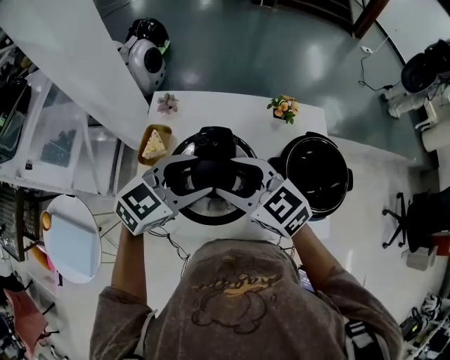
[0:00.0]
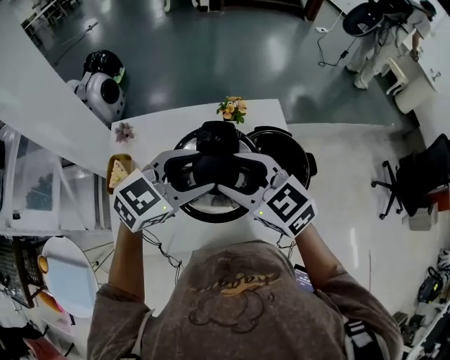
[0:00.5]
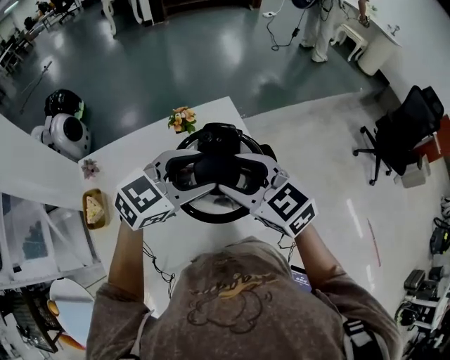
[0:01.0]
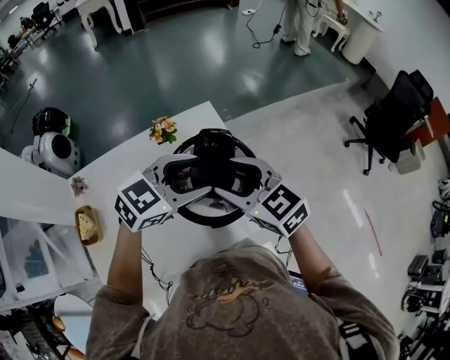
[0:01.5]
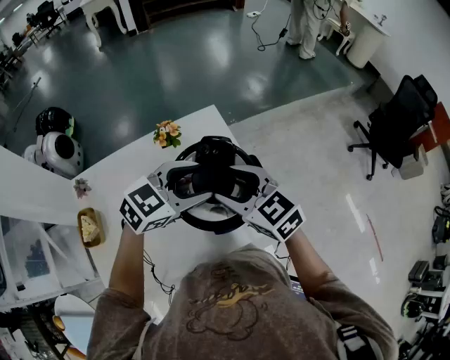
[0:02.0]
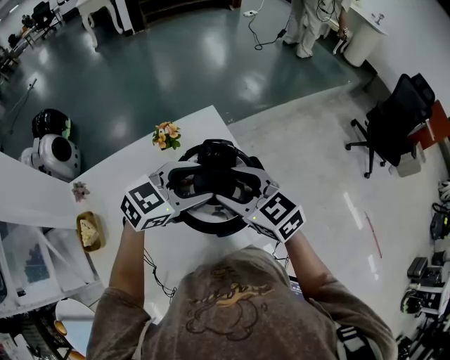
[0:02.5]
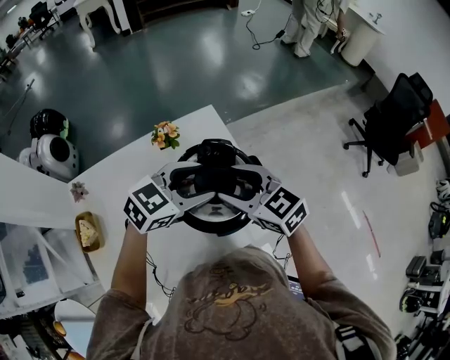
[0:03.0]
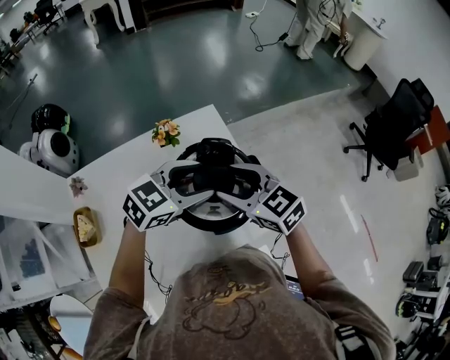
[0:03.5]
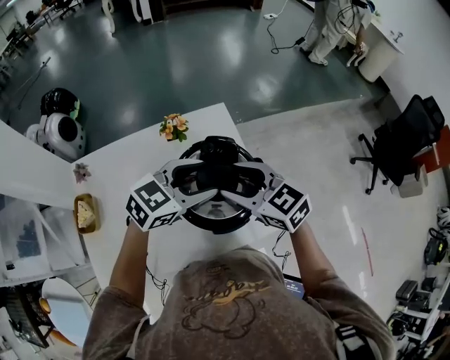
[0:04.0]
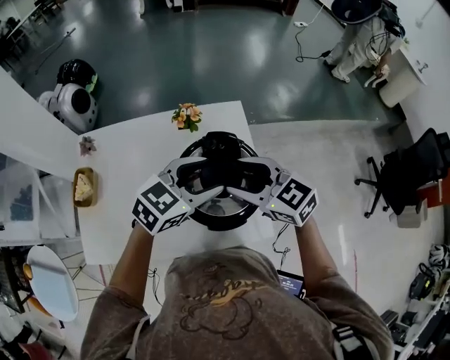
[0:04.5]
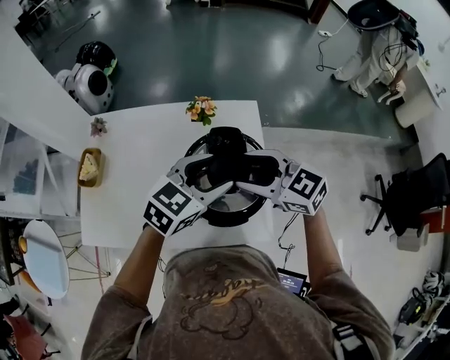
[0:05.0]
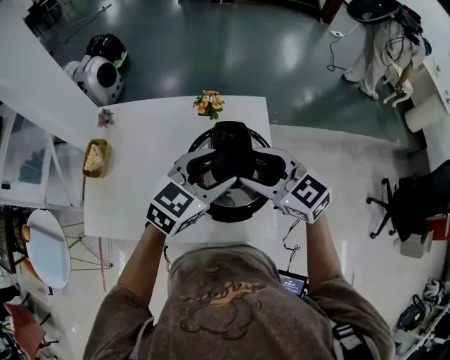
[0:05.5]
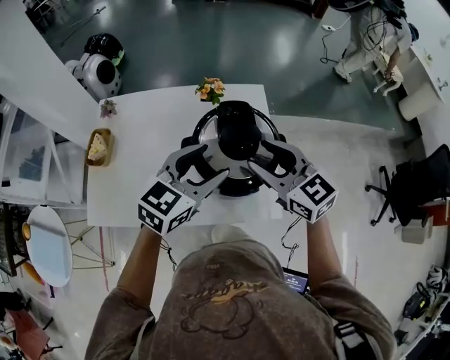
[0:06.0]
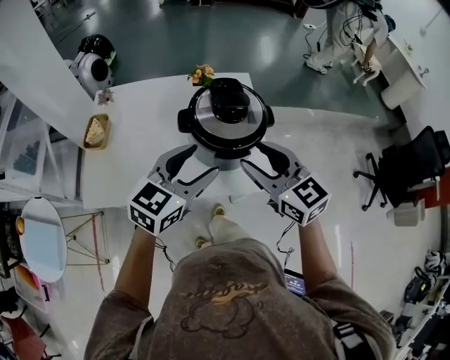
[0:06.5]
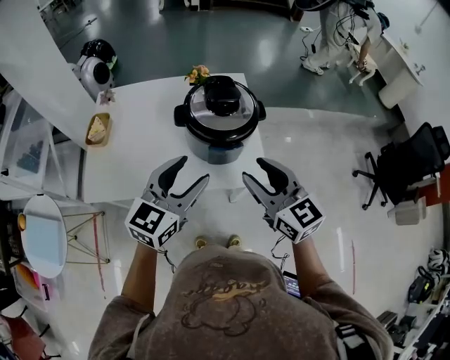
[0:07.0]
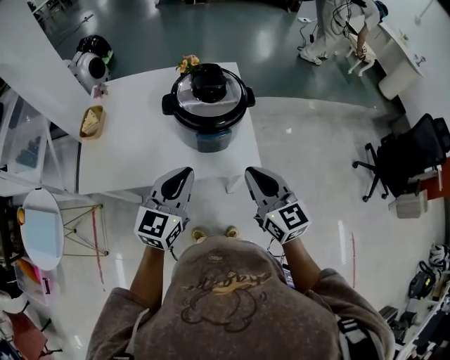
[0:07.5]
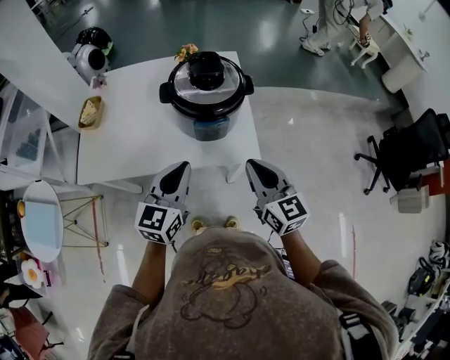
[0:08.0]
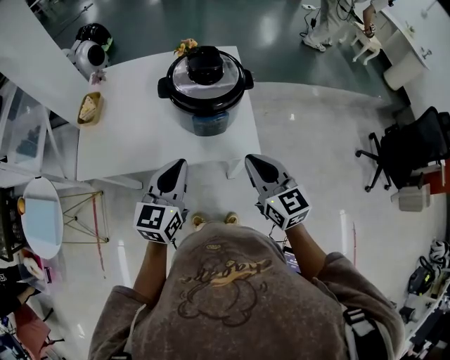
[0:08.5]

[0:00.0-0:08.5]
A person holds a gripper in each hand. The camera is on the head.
0:00.0 to 0:02.0: The right gripper changes place by about 30 cm, and swivels some 30 degrees. Meanwhile the left gripper ends up approximately 30 cm from where it was, and rotates about 30 degrees.
0:02.0 to 0:04.0: The grippers stay close to where they were, moving slightly.
0:04.0 to 0:06.5: The right gripper ends up roughly 15 cm from where it was, while the left gripper ends up some 20 cm from where it was, and turns by about 30 degrees.
0:06.5 to 0:08.5: The right gripper goes approximately 15 cm backward, downward and to the right, and closes up, while the left gripper goes roughly 10 cm backward and downward, changes its angle by roughly 20 degrees, and closes.

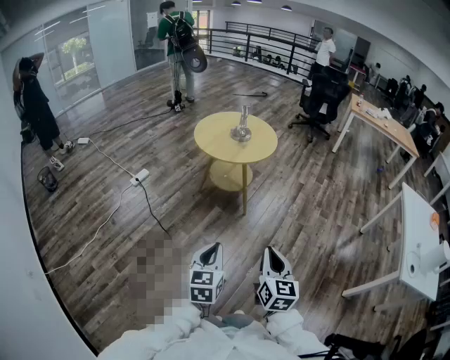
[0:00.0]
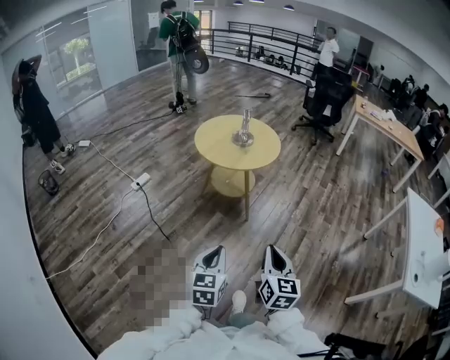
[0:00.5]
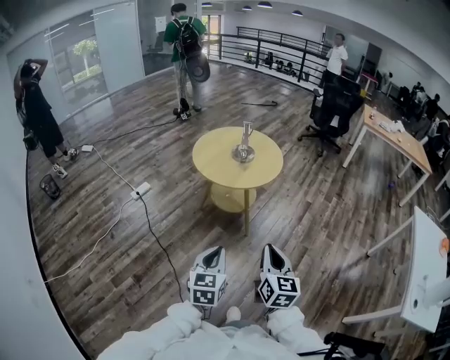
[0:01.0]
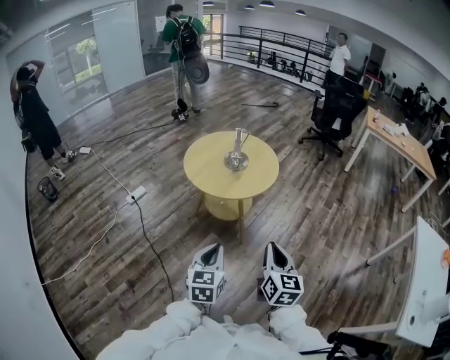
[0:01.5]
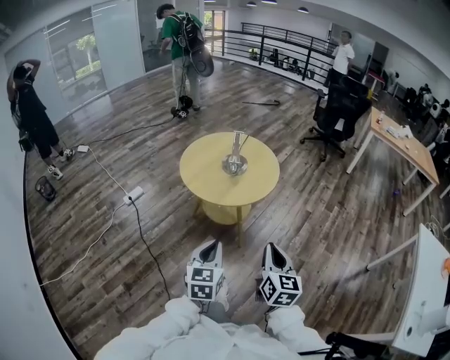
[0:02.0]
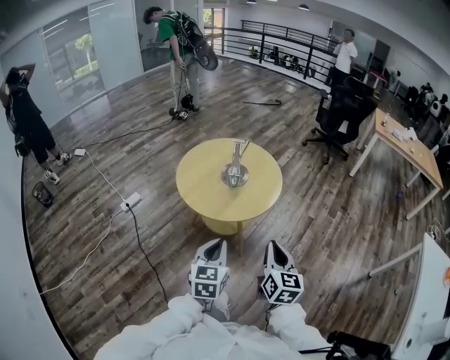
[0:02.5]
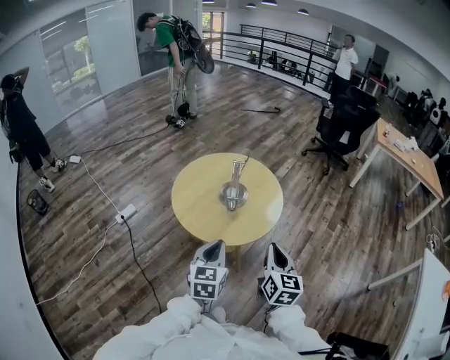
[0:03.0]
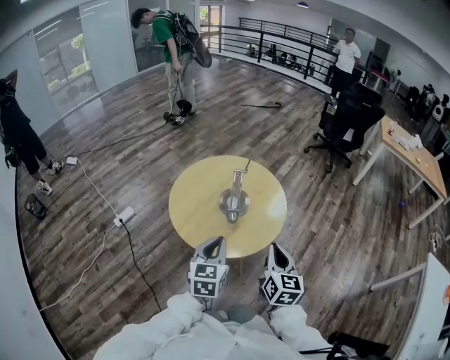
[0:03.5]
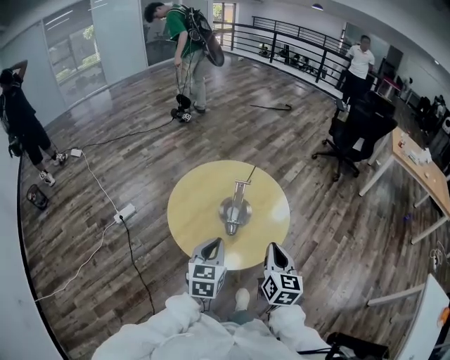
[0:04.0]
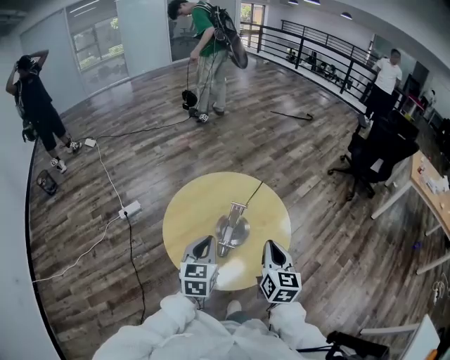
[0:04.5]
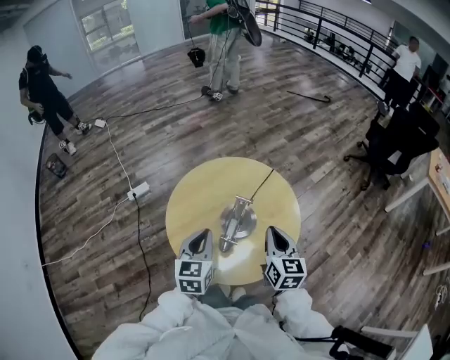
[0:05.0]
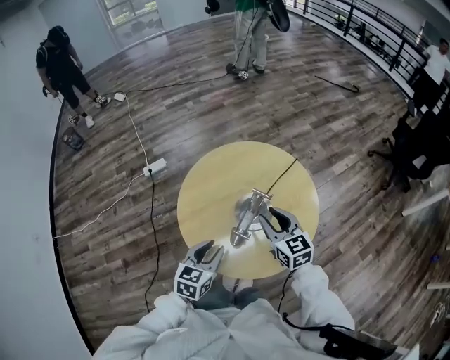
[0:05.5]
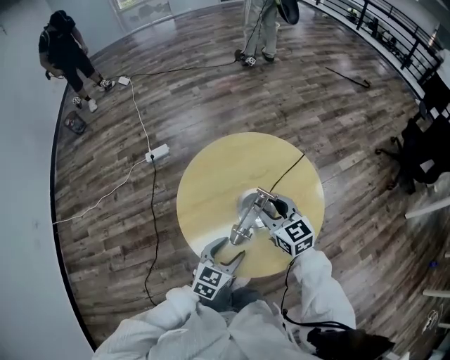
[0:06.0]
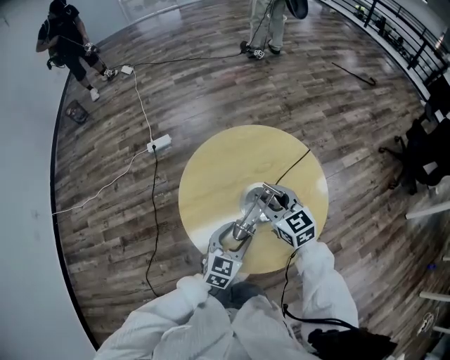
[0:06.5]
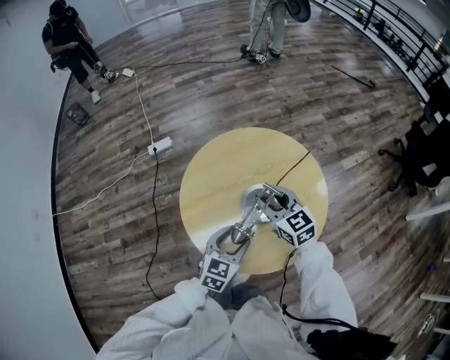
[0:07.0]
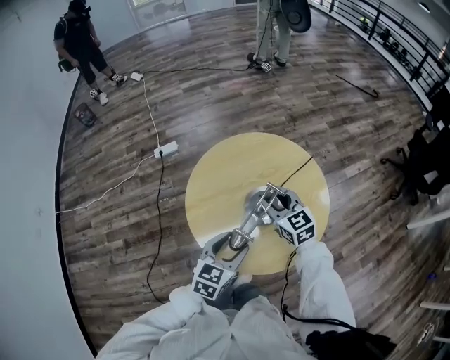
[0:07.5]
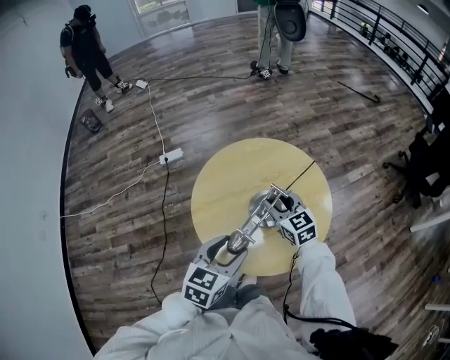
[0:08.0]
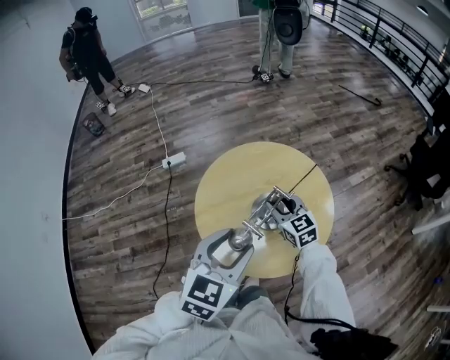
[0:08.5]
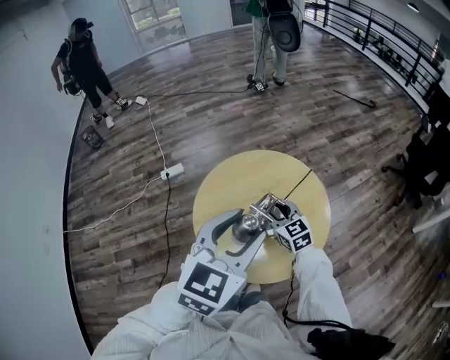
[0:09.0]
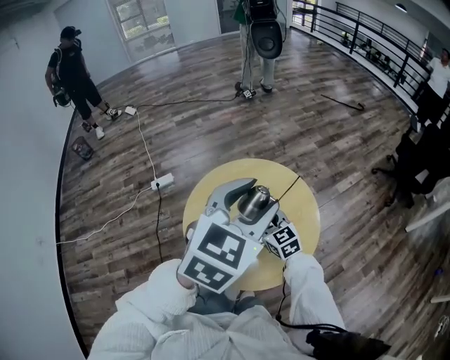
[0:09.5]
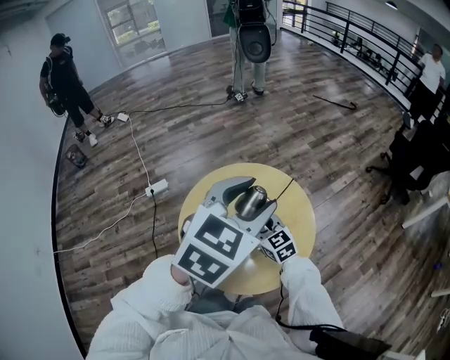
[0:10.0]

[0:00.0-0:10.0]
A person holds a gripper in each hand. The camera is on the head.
0:00.0 to 0:02.0: Both grippers travel together forward, about 35 cm.
0:02.0 to 0:04.0: The two grippers go about 40 cm forward.
0:04.0 to 0:06.0: The left gripper moves downward, roughly 15 cm, and opens; the right gripper moves about 30 cm, changes its angle by roughly 60 degrees, and opens up.
0:06.0 to 0:08.0: The left gripper is displaced upward by approximately 15 cm.
0:08.0 to 0:10.0: The left gripper goes roughly 30 cm upward, forward and to the right, and rotates about 30 degrees.

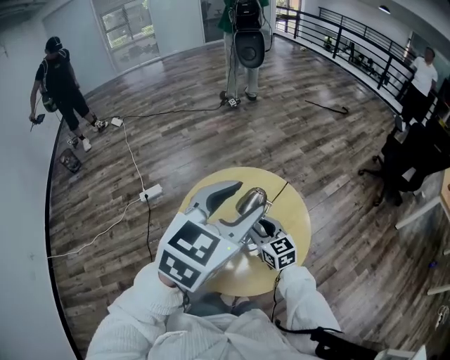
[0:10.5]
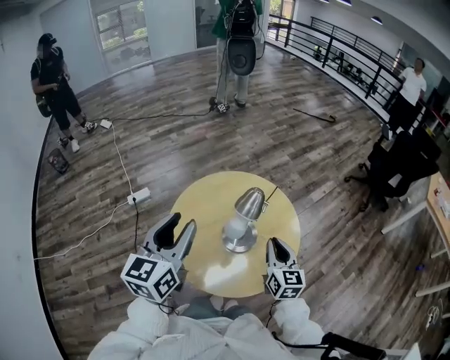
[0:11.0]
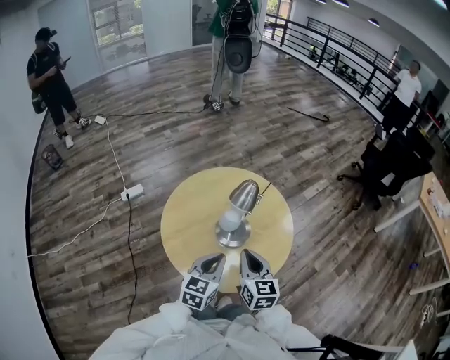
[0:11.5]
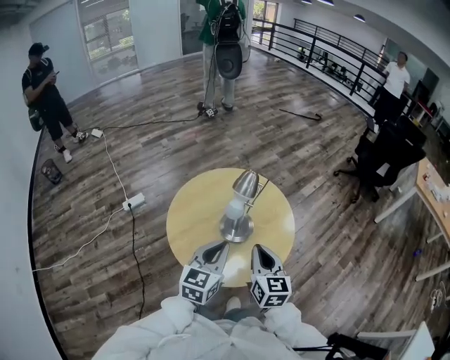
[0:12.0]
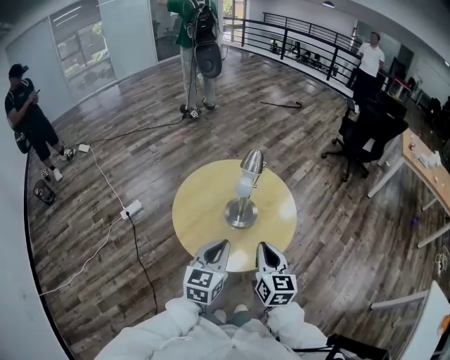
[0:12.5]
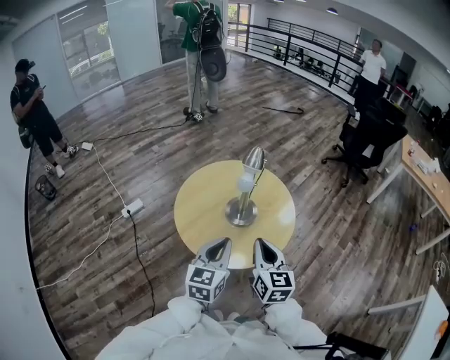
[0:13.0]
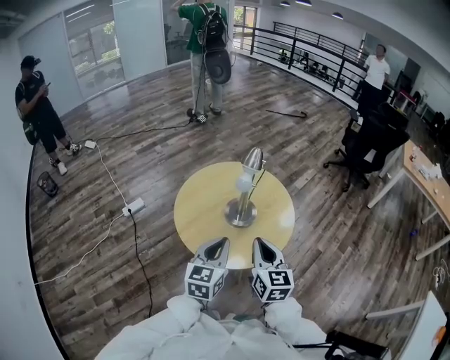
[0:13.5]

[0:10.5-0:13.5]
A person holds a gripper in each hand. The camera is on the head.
0:10.5 to 0:12.0: The right gripper shifts roughly 15 cm backward, swivels some 30 degrees, and closes its fingers, while the left gripper travels downward and backward by roughly 25 cm, and closes its fingers.
0:12.0 to 0:13.5: Both grippers travel together backward, about 10 cm.

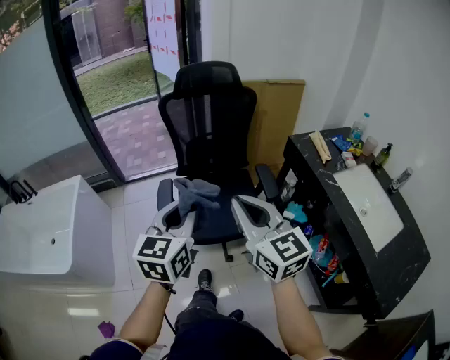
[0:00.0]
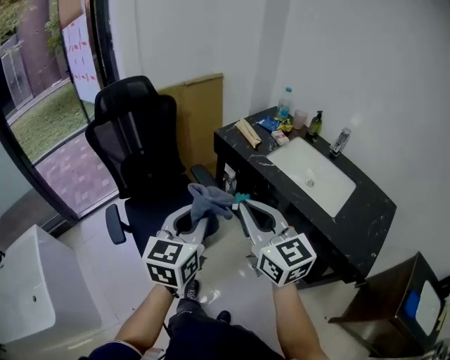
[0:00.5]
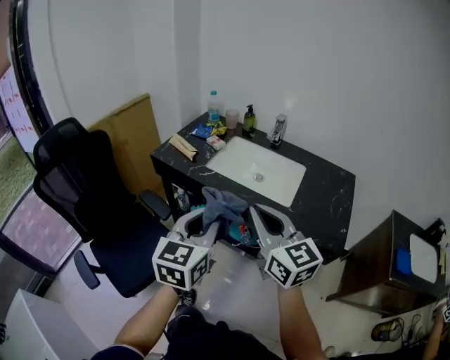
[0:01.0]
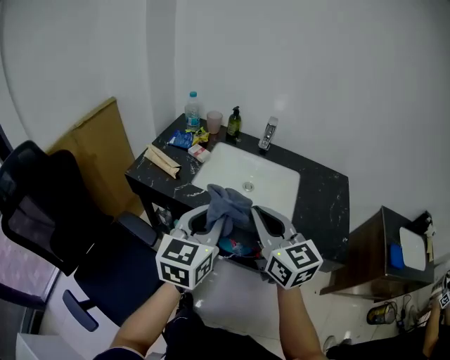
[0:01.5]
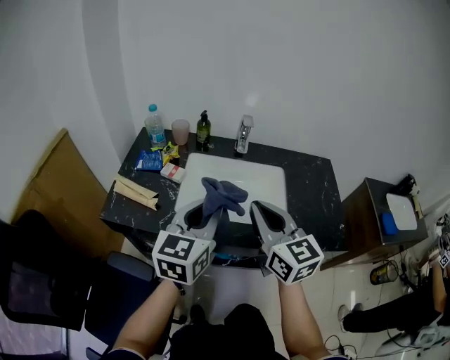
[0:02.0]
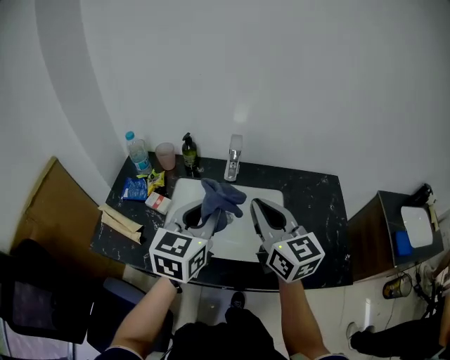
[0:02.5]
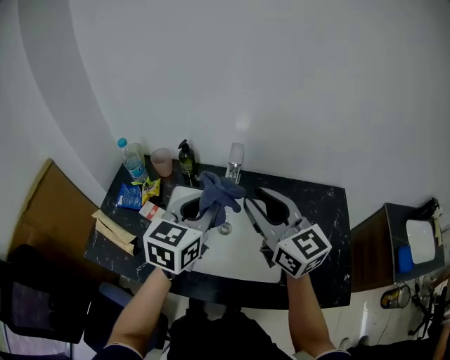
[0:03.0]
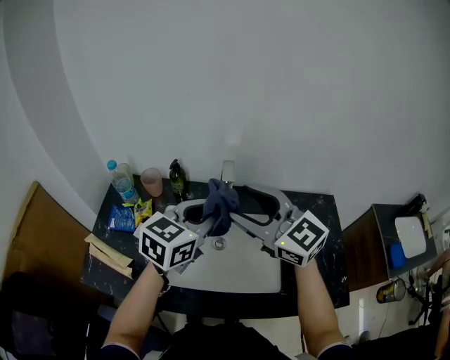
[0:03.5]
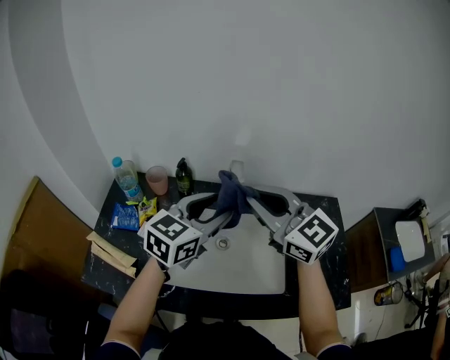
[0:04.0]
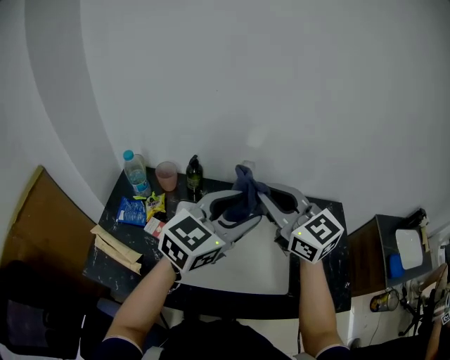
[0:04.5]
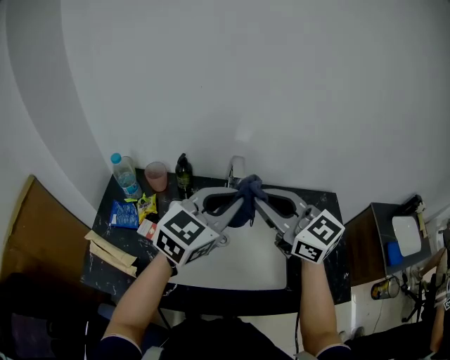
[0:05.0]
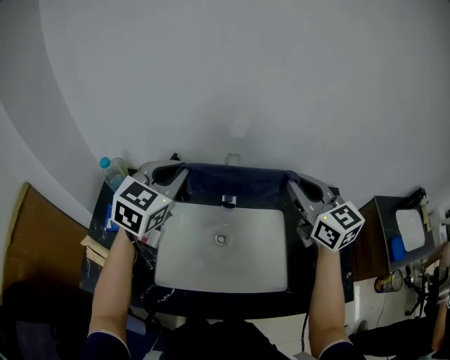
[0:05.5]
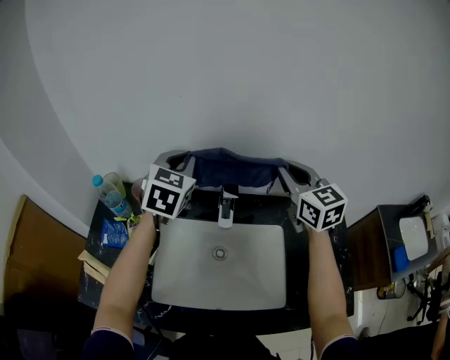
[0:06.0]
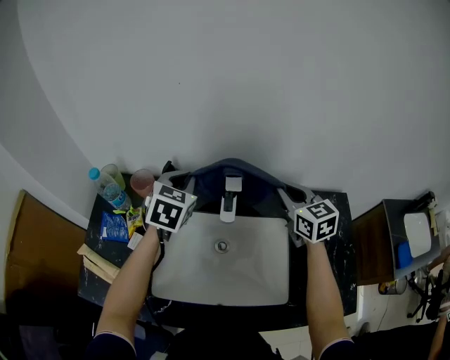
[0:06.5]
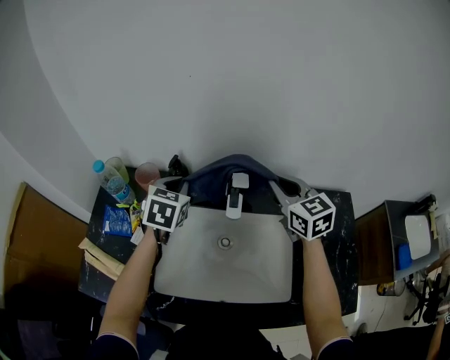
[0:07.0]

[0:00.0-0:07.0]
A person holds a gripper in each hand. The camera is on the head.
0:00.0 to 0:02.0: The two grippers travel together, approximately 50 cm. The right gripper turns by roughly 70 degrees; the left gripper changes its angle by roughly 70 degrees.
0:02.0 to 0:03.5: The right gripper heads forward, covering roughly 20 cm, swivels about 30 degrees, and opens its fingers; the left gripper goes some 25 cm forward and to the right, and turns by about 20 degrees.
0:03.5 to 0:05.0: The right gripper closes its fingers. Meanwhile the left gripper opens and closes again.
0:05.0 to 0:07.0: The left gripper travels downward, forward and to the left by roughly 25 cm, and points its fingers roughly 30 degrees further downward. The right gripper moves forward, downward and to the right, about 20 cm, and swivels approximately 20 degrees.
